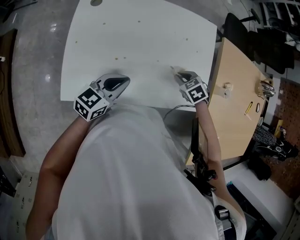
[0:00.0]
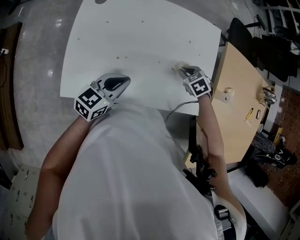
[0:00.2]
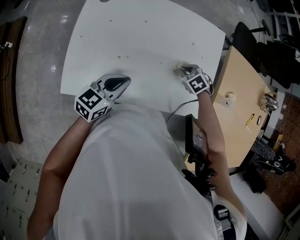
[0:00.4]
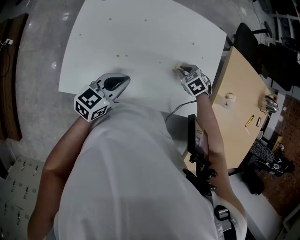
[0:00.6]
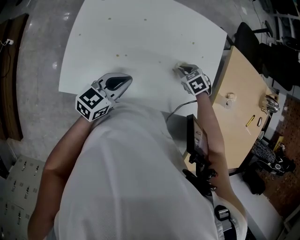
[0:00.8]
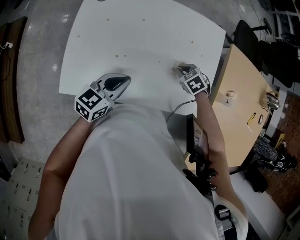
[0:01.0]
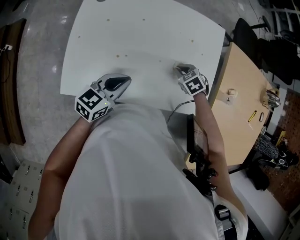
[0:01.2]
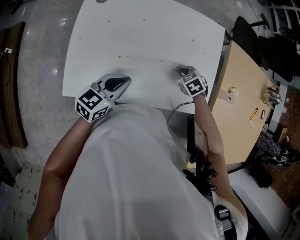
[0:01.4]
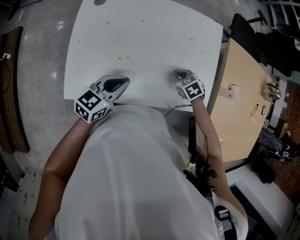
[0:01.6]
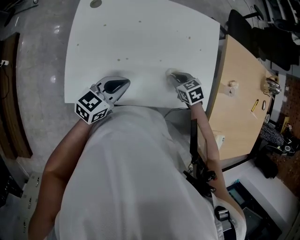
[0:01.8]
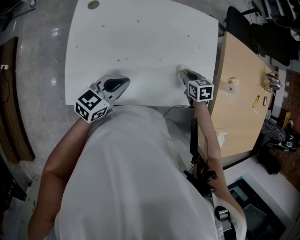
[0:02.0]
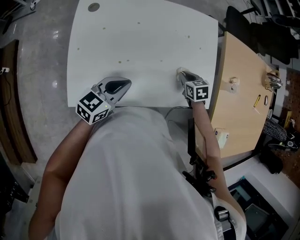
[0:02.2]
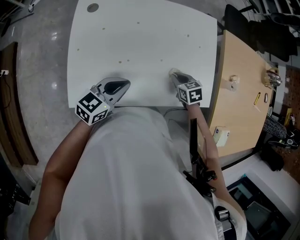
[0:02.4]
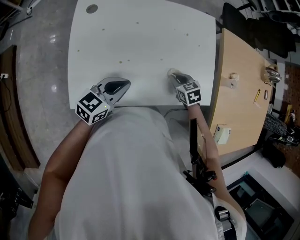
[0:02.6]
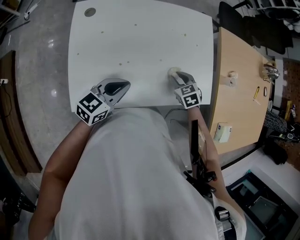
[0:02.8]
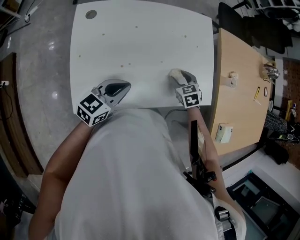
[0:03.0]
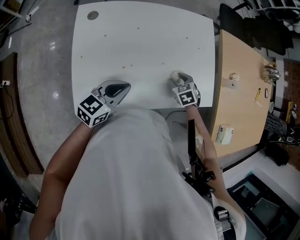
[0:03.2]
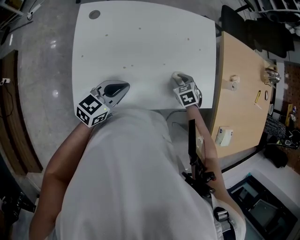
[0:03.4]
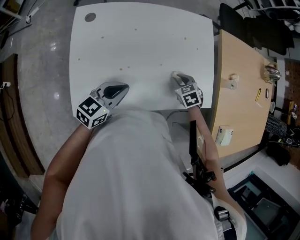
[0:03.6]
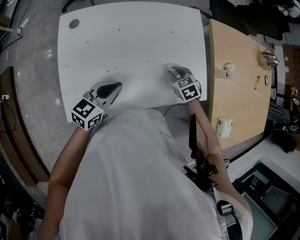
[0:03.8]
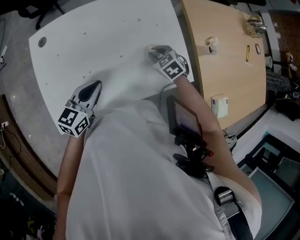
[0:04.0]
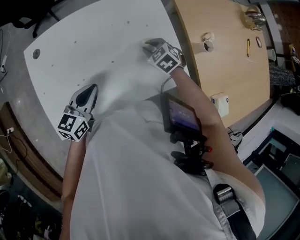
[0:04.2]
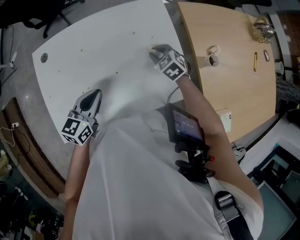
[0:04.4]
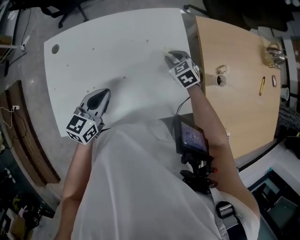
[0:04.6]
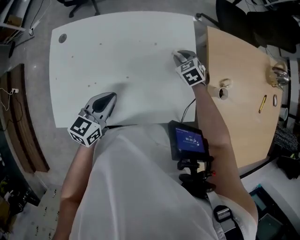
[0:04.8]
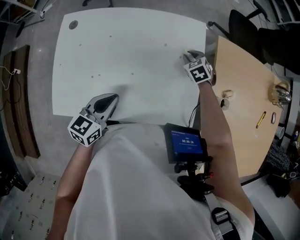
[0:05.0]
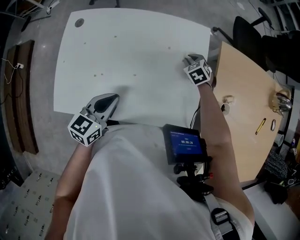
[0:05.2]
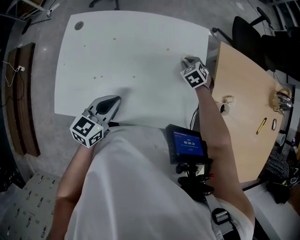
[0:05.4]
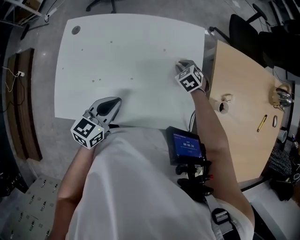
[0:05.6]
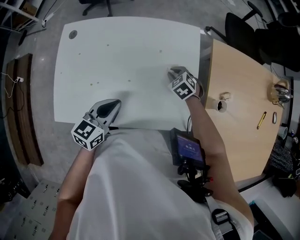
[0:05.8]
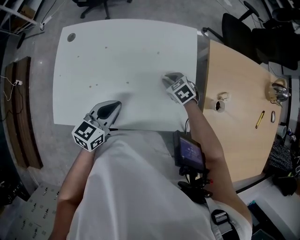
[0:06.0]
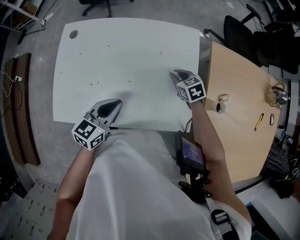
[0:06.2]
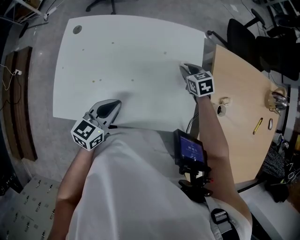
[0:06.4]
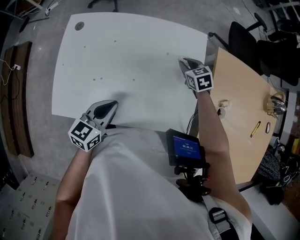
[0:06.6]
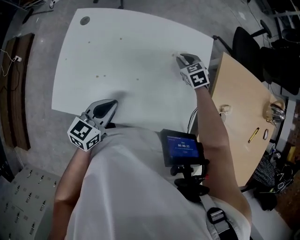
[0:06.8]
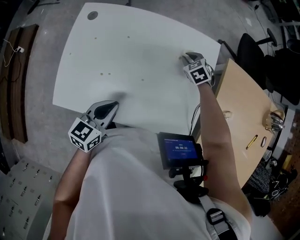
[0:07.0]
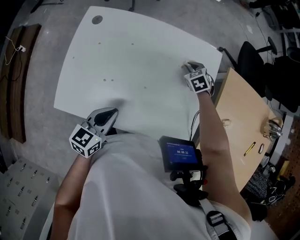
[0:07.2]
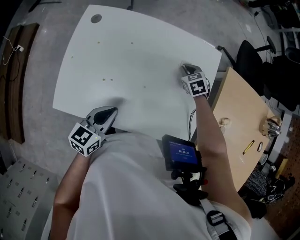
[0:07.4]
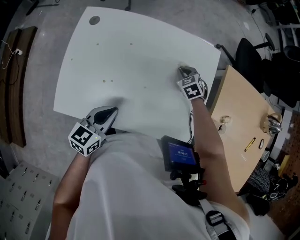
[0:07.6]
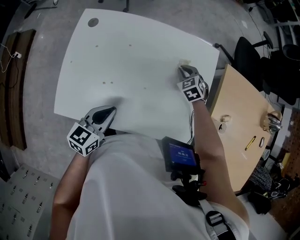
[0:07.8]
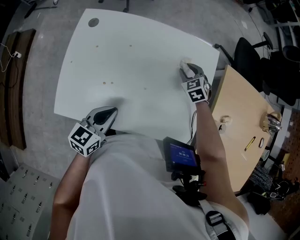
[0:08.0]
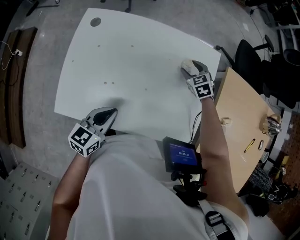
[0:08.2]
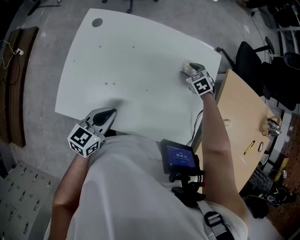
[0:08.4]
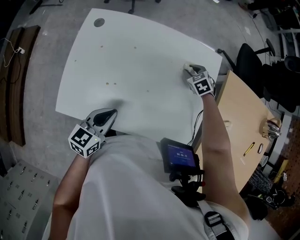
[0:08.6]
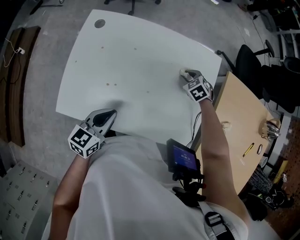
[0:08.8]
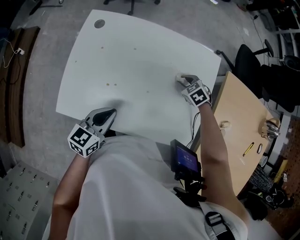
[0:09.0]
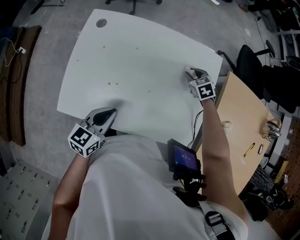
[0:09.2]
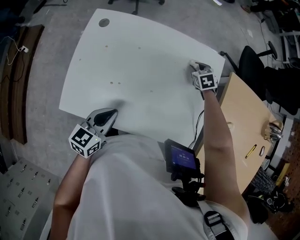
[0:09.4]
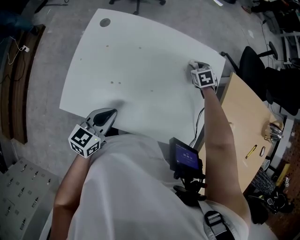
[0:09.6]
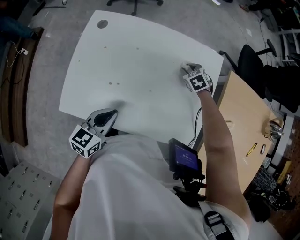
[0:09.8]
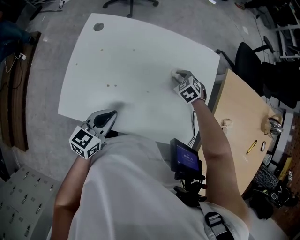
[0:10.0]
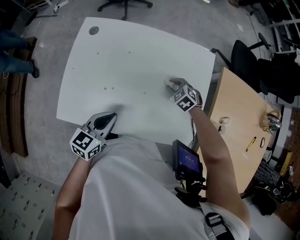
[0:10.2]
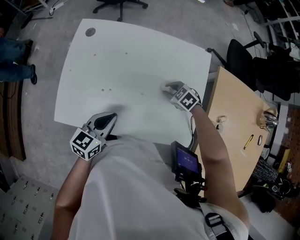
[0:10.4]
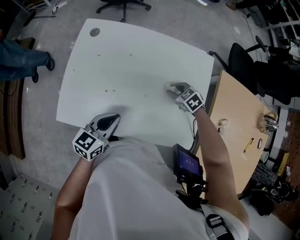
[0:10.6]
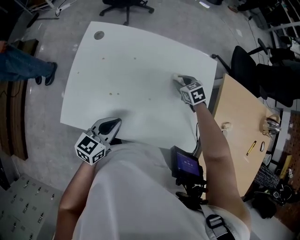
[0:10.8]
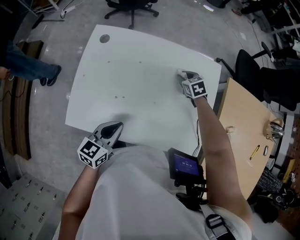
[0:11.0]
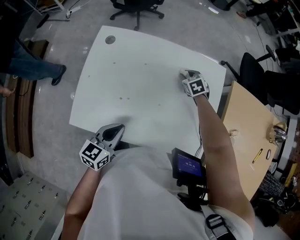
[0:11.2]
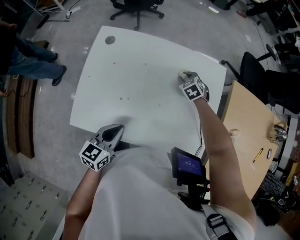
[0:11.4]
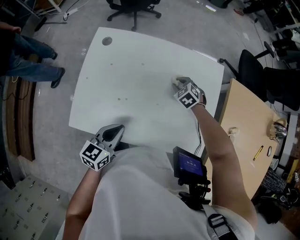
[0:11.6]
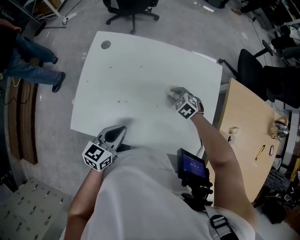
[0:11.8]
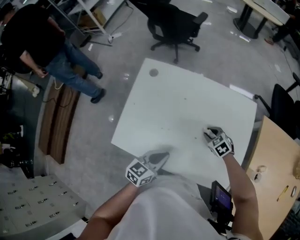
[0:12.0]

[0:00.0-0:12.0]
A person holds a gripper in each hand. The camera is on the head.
0:00.0 to 0:01.6: The grippers make only small movements.
0:01.6 to 0:03.0: The right gripper rotates approximately 20 degrees, and opens.
0:03.0 to 0:04.4: Both grippers travel together forward and to the right, about 10 cm. The right gripper closes.
0:04.4 to 0:06.0: The left gripper is displaced to the right by some 5 cm. The right gripper travels forward and back again, approximately 10 cm each way.
0:06.0 to 0:07.6: The right gripper travels forward by roughly 10 cm. Meanwhile the left gripper travels to the left by approximately 10 cm.
0:07.6 to 0:09.0: The right gripper opens.
0:09.0 to 0:10.4: The right gripper moves backward, approximately 5 cm.
0:10.4 to 0:12.0: The right gripper moves approximately 15 cm forward and comes back. Meanwhile the left gripper goes some 5 cm to the right.

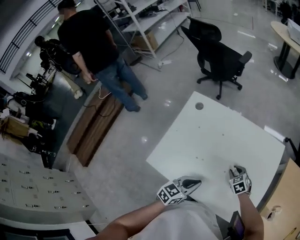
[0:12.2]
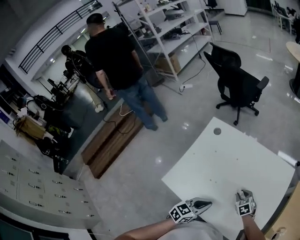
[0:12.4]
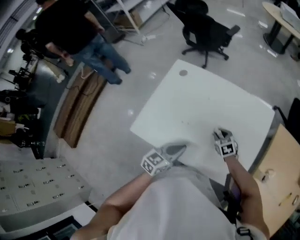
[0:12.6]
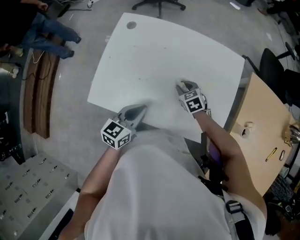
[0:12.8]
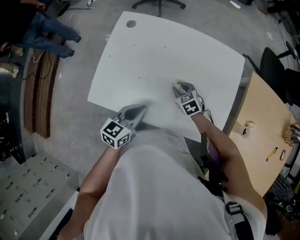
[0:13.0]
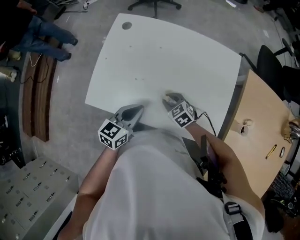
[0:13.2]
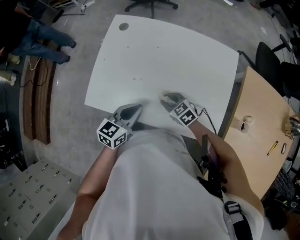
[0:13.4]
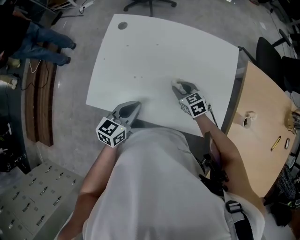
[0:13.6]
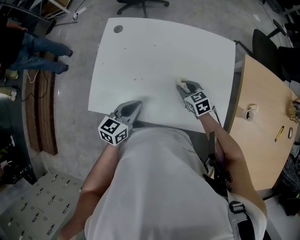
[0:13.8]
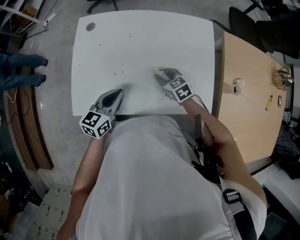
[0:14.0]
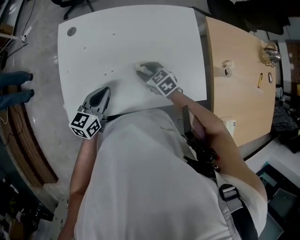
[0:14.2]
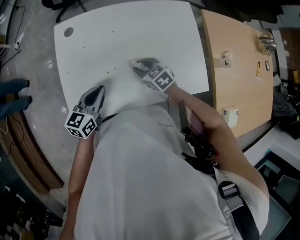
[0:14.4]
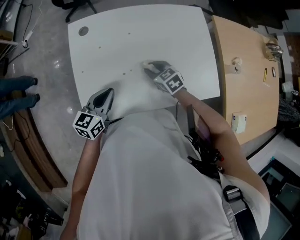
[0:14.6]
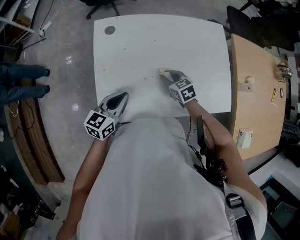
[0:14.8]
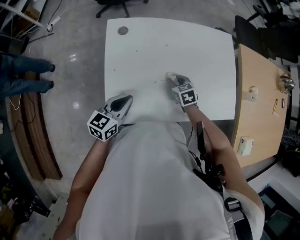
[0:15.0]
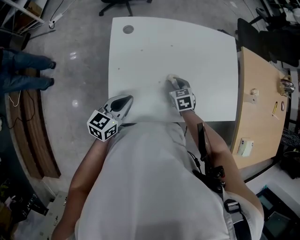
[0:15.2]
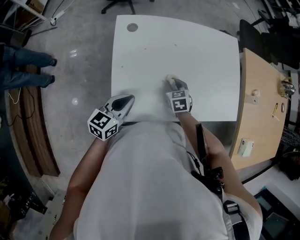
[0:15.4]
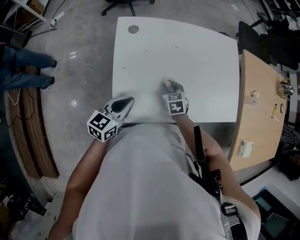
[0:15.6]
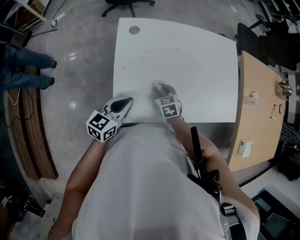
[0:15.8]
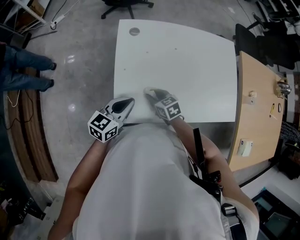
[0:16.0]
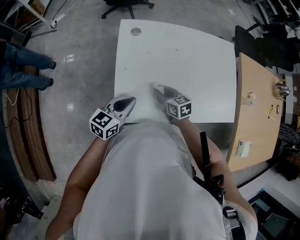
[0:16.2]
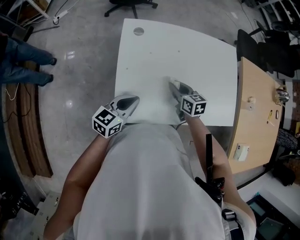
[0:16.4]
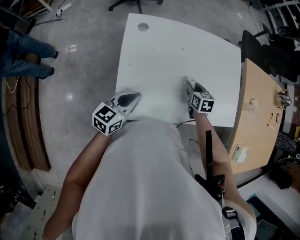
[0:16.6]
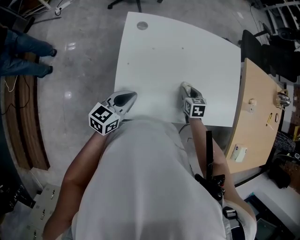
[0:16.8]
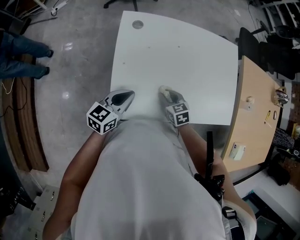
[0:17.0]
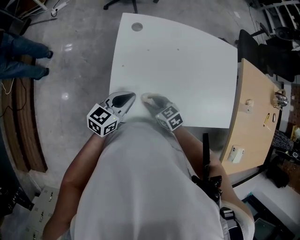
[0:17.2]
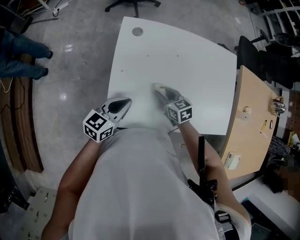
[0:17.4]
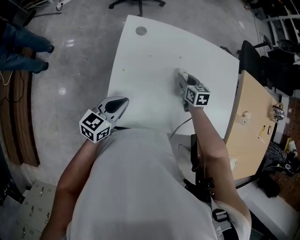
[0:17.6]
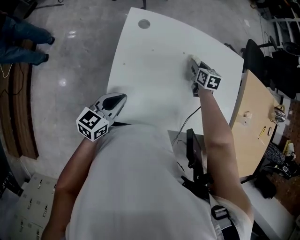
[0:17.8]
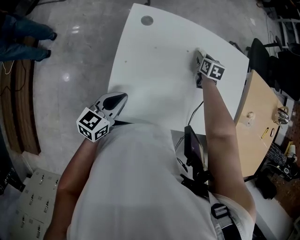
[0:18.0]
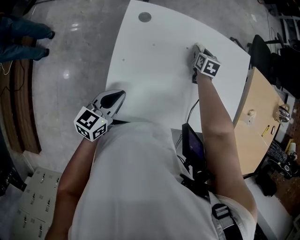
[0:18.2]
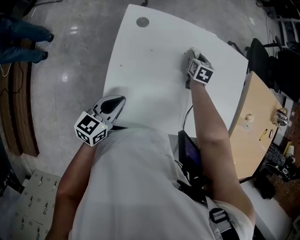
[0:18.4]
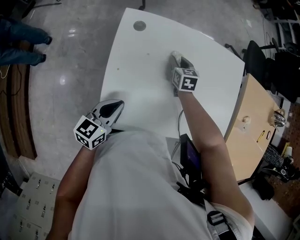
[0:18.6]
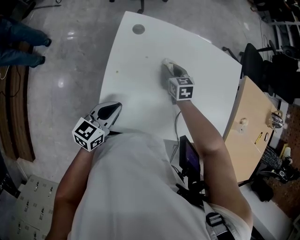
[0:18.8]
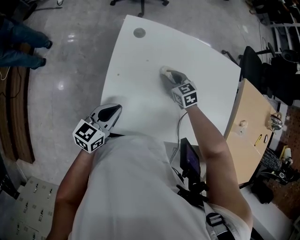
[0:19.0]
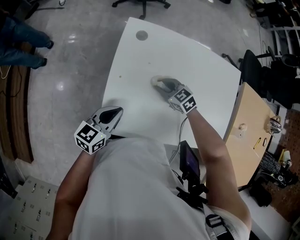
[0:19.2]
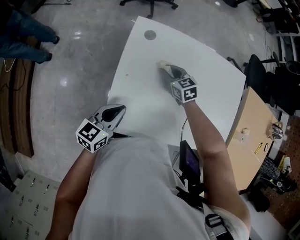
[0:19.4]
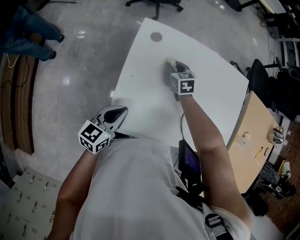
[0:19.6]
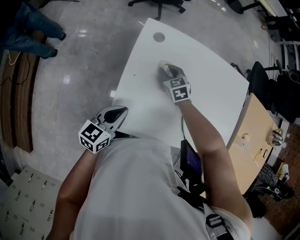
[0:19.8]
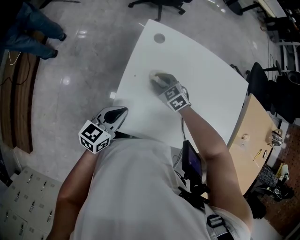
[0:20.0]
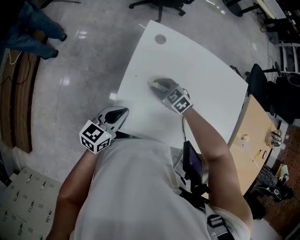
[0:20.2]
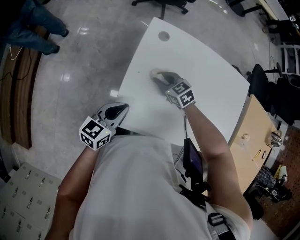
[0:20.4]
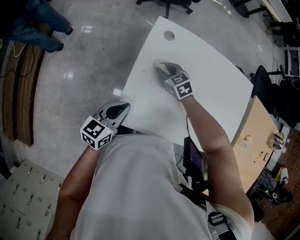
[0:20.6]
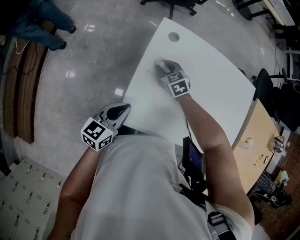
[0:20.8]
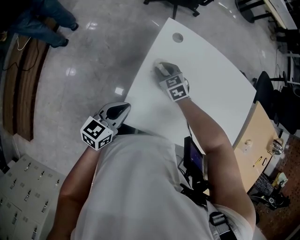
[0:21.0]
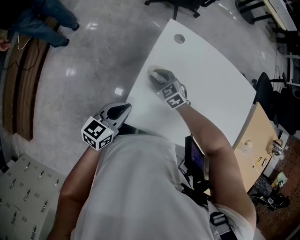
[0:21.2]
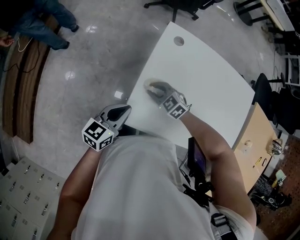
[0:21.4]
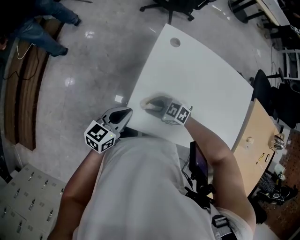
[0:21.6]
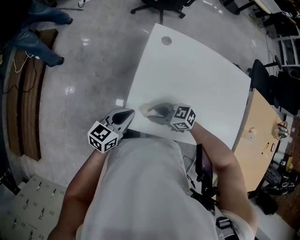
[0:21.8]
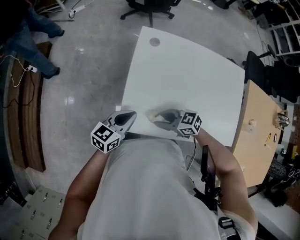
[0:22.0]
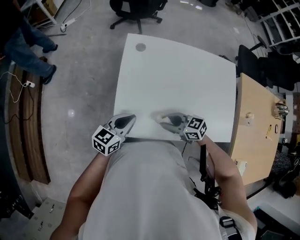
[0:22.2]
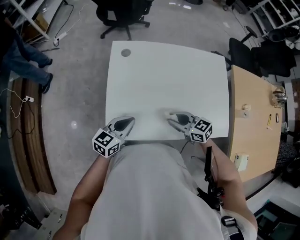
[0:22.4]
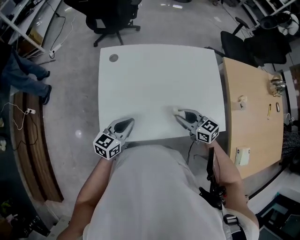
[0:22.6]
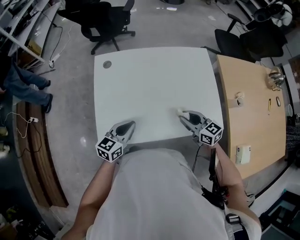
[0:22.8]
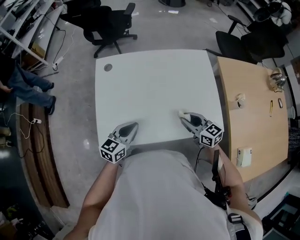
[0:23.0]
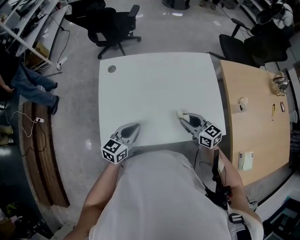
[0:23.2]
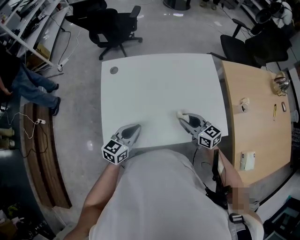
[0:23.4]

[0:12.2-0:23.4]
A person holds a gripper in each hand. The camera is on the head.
0:12.2 to 0:13.8: The right gripper shifts about 5 cm backward, reaches about 10 cm to the left, then returns, and rotates roughly 20 degrees.
0:13.8 to 0:15.4: The right gripper ends up roughly 15 cm from where it was, and turns by approximately 30 degrees; the left gripper ends up about 20 cm from where it was.
0:15.4 to 0:17.0: The right gripper moves left and right over some 15 cm, changing direction 2 times.
0:17.0 to 0:18.6: The right gripper moves some 25 cm.
0:18.6 to 0:20.2: The right gripper changes place by roughly 20 cm, and swivels roughly 60 degrees.
0:20.2 to 0:21.8: The right gripper changes place by about 15 cm, and changes its angle by approximately 30 degrees.
0:21.8 to 0:23.4: The right gripper shifts by approximately 35 cm, and turns by approximately 60 degrees, while the left gripper changes place by roughly 20 cm.

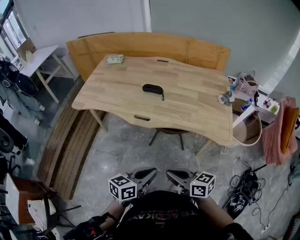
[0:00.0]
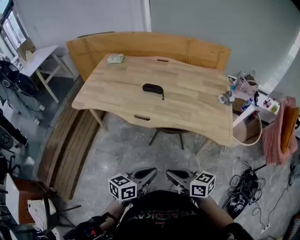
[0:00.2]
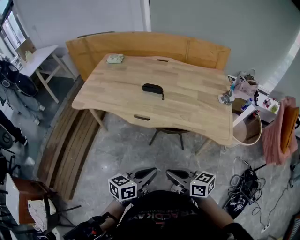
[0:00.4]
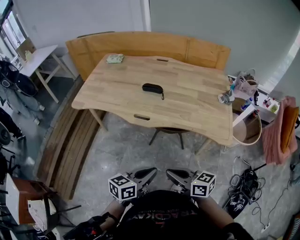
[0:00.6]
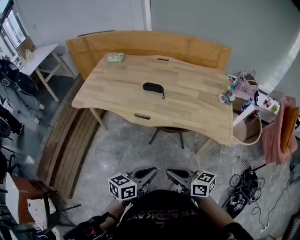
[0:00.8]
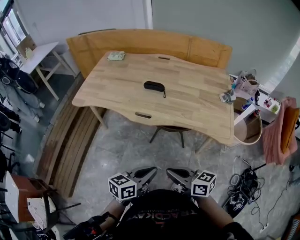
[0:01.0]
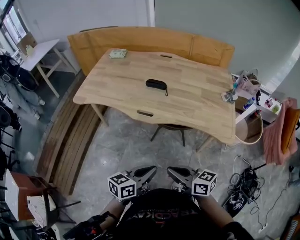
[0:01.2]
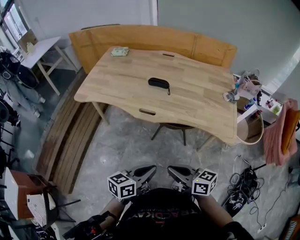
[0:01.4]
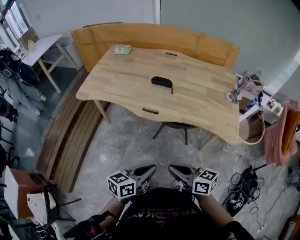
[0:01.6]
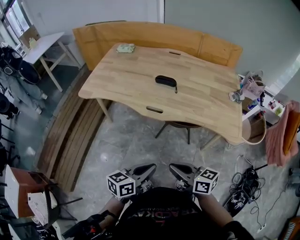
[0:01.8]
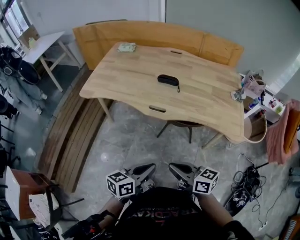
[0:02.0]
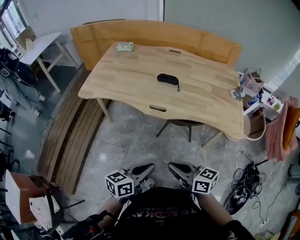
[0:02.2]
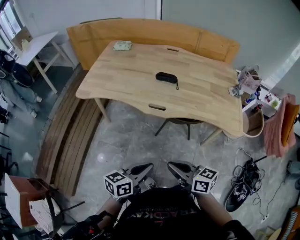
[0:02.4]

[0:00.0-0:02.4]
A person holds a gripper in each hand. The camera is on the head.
0:00.0 to 0:01.2: The grippers stay close to where they were, moving slightly.
0:01.2 to 0:02.4: The two grippers go about 10 cm to the left.
